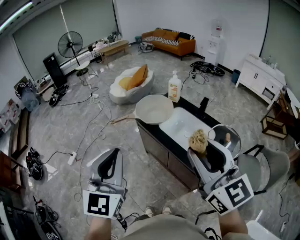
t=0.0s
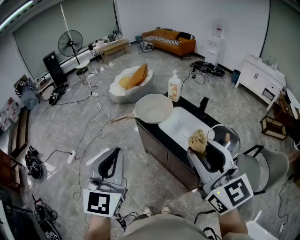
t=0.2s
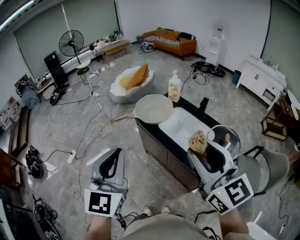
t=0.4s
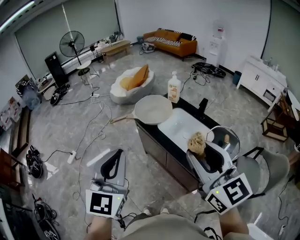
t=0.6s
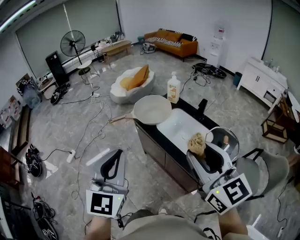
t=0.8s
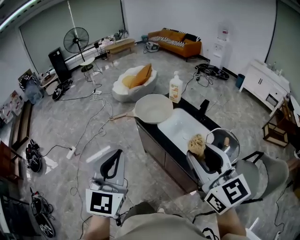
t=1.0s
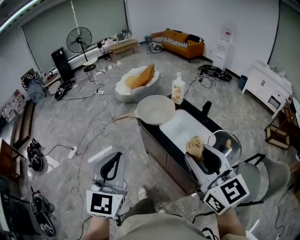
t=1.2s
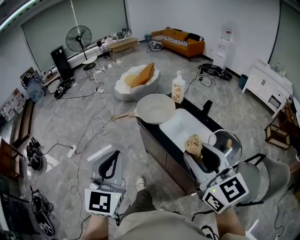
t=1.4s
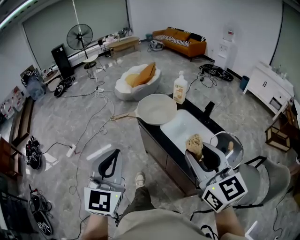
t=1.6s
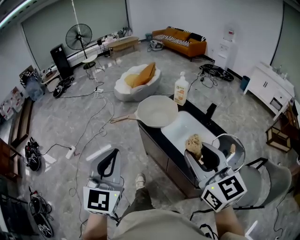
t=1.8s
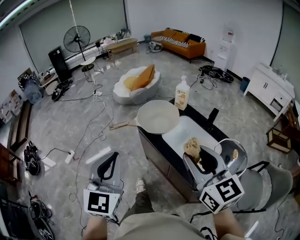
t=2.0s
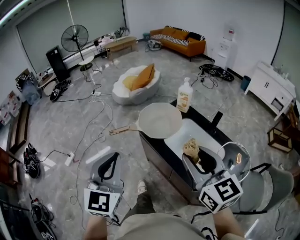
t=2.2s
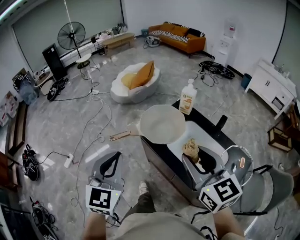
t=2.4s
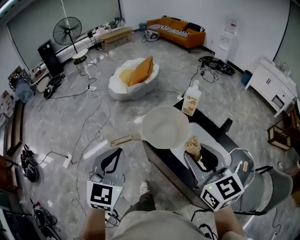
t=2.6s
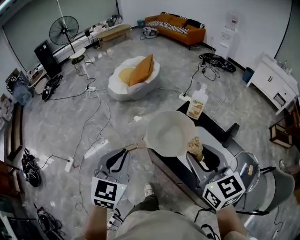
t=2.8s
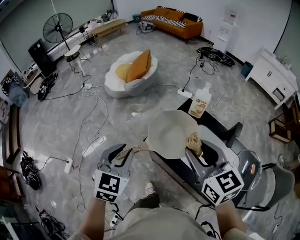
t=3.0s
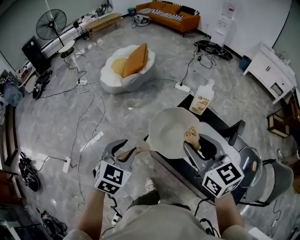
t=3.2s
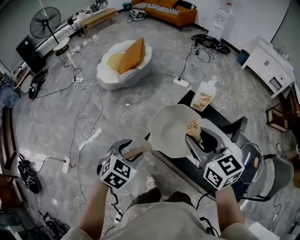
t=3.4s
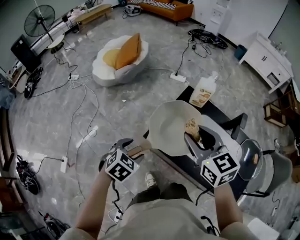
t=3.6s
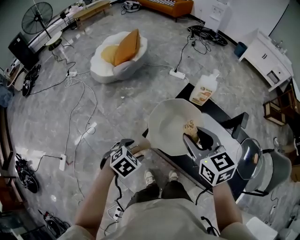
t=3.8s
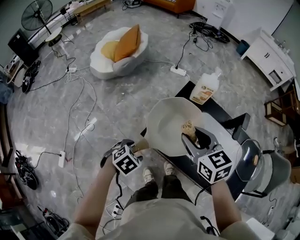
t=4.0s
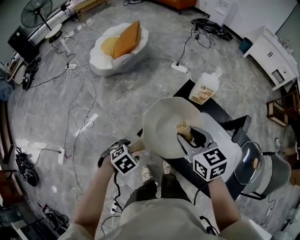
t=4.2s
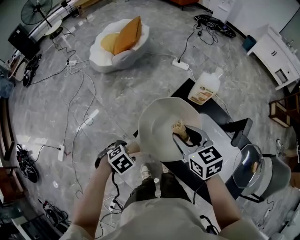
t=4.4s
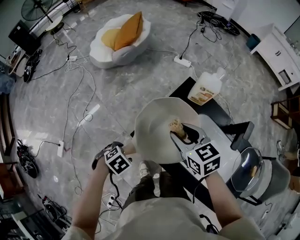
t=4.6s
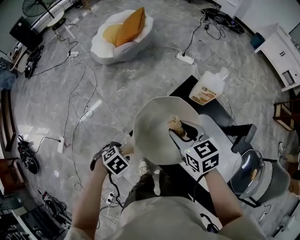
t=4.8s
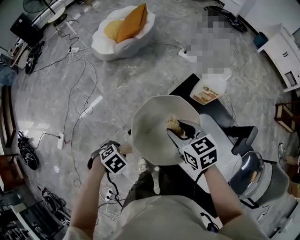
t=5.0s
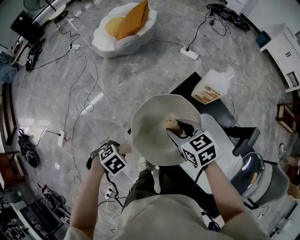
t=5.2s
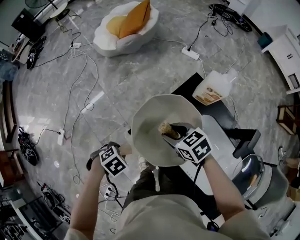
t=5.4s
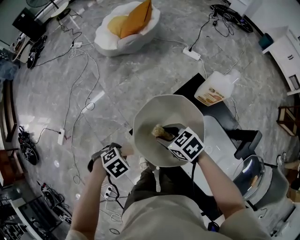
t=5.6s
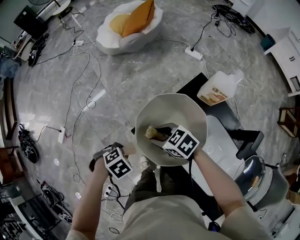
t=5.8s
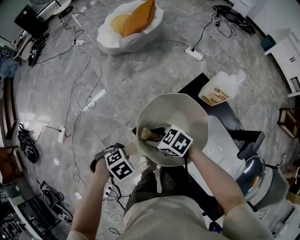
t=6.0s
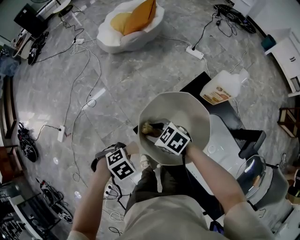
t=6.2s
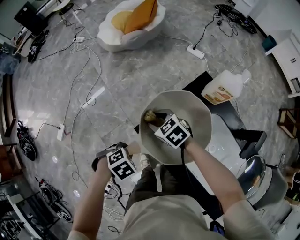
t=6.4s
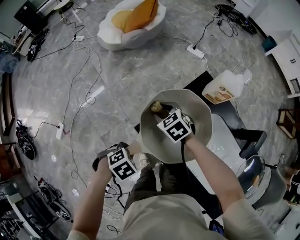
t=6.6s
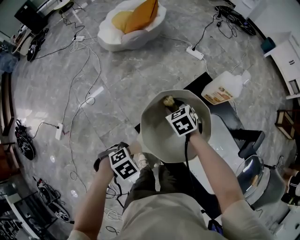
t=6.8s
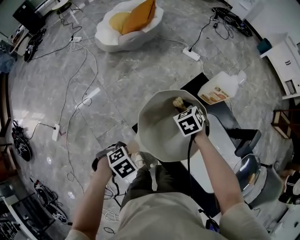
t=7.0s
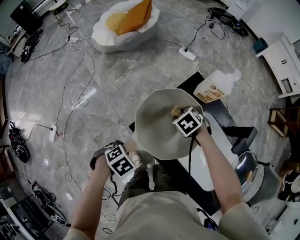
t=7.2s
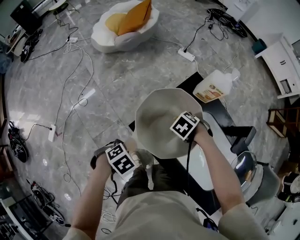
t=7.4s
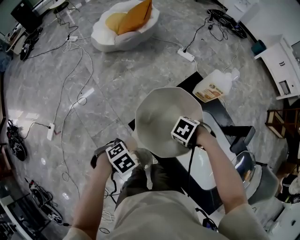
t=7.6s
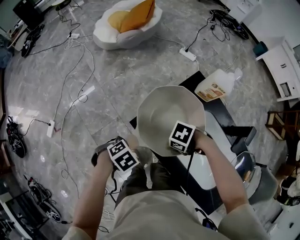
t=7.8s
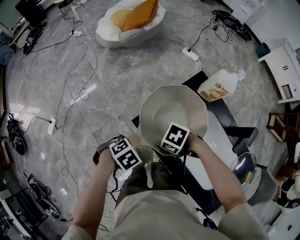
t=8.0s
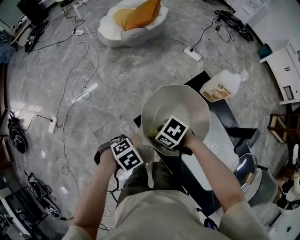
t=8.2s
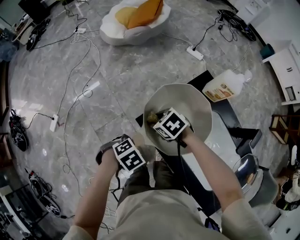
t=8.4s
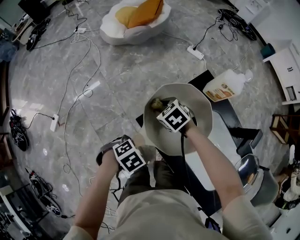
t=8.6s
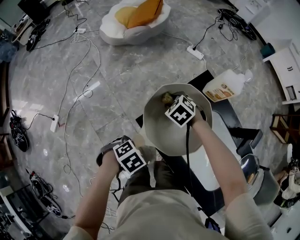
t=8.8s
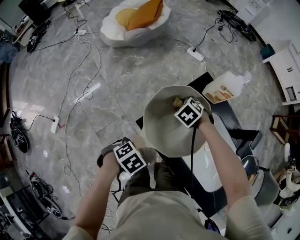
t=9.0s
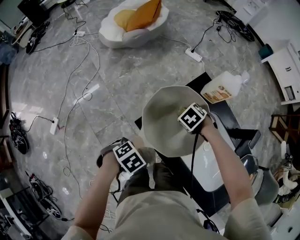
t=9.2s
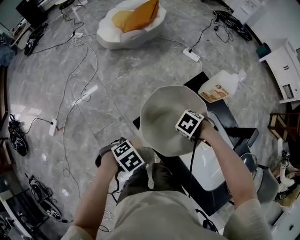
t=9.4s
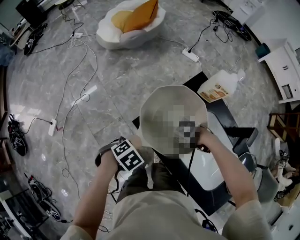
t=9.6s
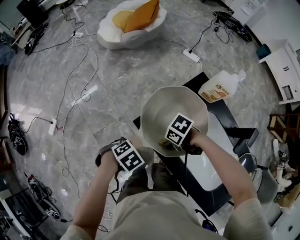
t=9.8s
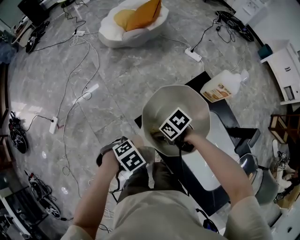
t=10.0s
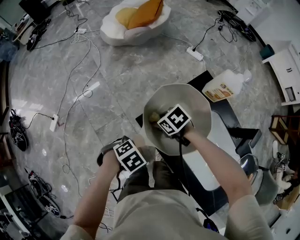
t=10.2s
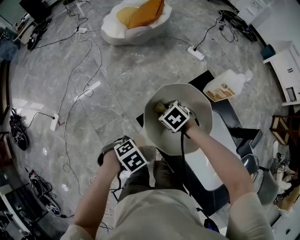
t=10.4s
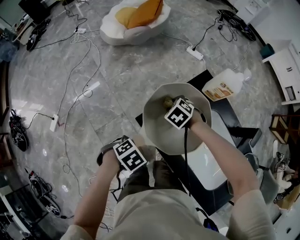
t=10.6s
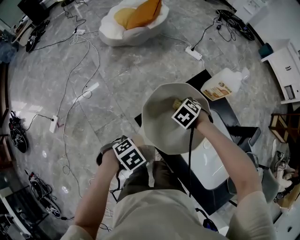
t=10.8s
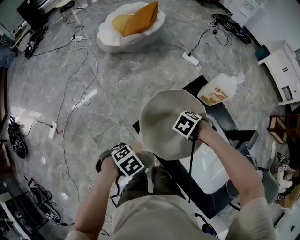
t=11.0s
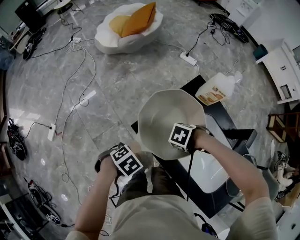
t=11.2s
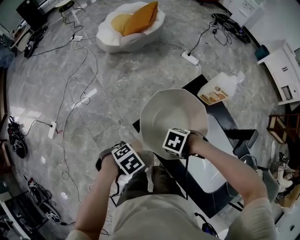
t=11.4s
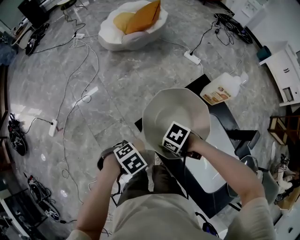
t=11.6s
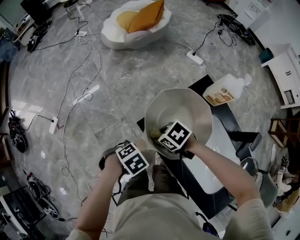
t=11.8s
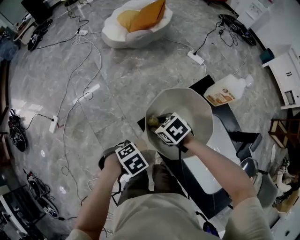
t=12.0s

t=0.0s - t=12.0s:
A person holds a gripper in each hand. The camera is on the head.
t=0.0s - t=1.6s: The right gripper goes approximately 5 cm downward. The left gripper changes place by approximately 5 cm.
t=1.6s - t=3.0s: Both grippers travel together forward, about 35 cm. The left gripper changes its angle by about 30 degrees.
t=3.0s - t=4.4s: The left gripper moves downward, roughly 30 cm, angles its fingers downward, by some 50 degrees, and opens. Meanwhile the right gripper heads downward, covering approximately 20 cm.
t=4.4s - t=6.0s: The right gripper travels downward by roughly 15 cm, and turns by roughly 50 degrees. Meanwhile the left gripper closes up.
t=6.0s - t=7.6s: The right gripper moves about 15 cm, and tilts its fingers approximately 30 degrees downward.
t=7.6s - t=9.0s: The right gripper moves approximately 15 cm, and rotates about 30 degrees.

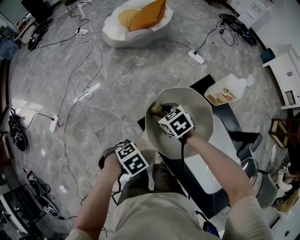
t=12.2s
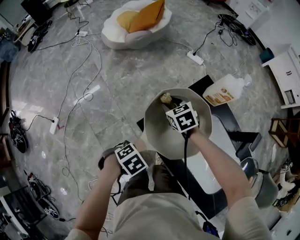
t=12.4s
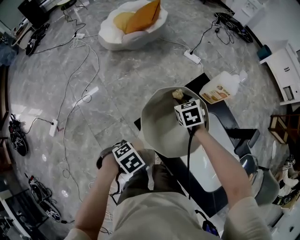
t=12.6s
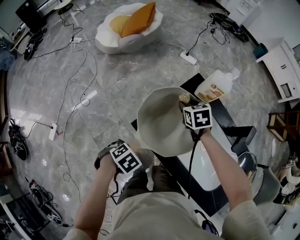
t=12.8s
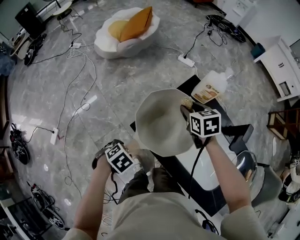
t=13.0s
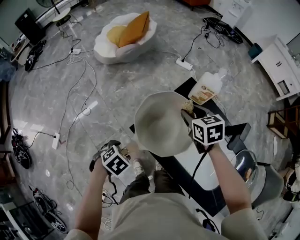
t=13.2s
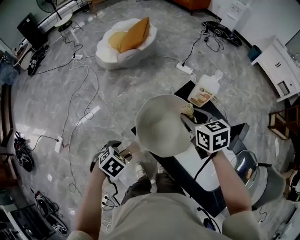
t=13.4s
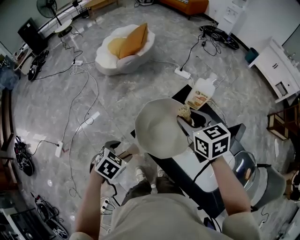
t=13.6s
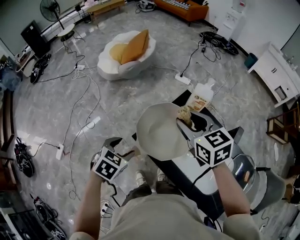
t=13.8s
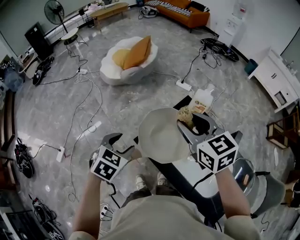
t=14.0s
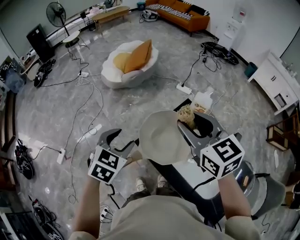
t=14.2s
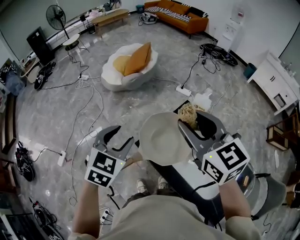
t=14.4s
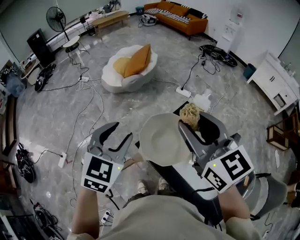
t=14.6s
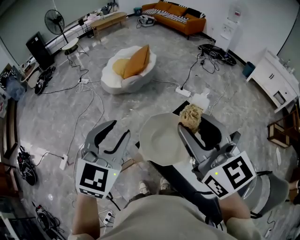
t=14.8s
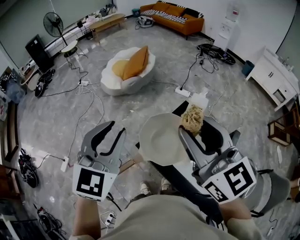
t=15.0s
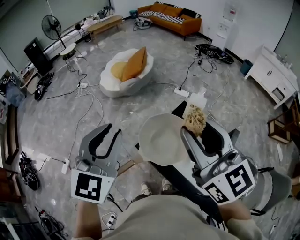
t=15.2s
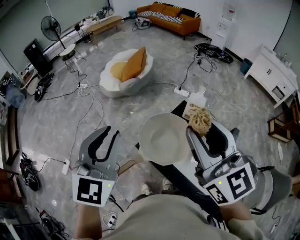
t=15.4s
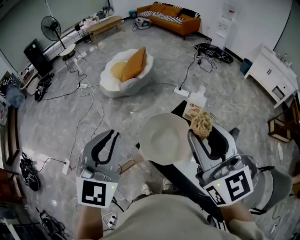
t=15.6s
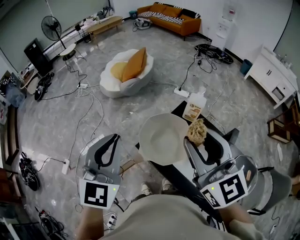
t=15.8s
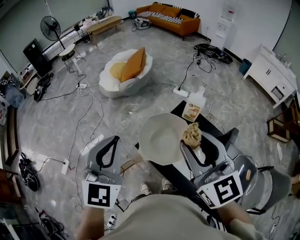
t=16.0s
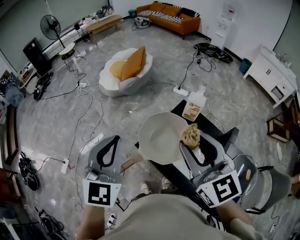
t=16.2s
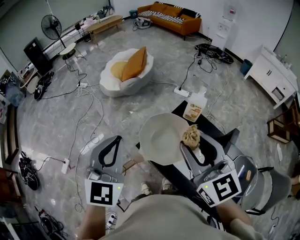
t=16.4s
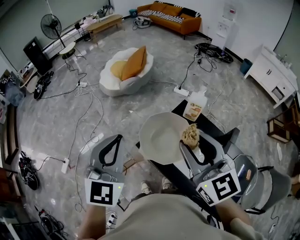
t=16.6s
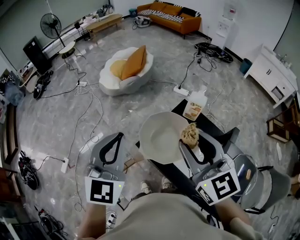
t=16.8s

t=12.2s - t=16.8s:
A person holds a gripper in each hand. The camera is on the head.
t=12.2s - t=13.8s: The left gripper heads upward, covering about 15 cm, swivels about 30 degrees, and opens up. The right gripper goes about 25 cm upward, and changes its angle by roughly 40 degrees.
t=13.8s - t=15.2s: The left gripper heads upward, covering approximately 30 cm, angles its fingers upward, by approximately 50 degrees, and closes up. The right gripper heads upward and backward, covering about 20 cm, and points its fingers roughly 30 degrees further upward.
t=15.2s - t=16.8s: The right gripper goes roughly 5 cm downward.

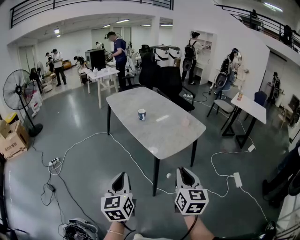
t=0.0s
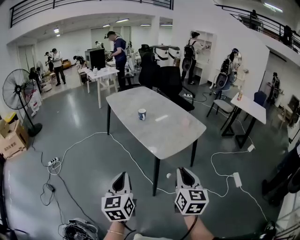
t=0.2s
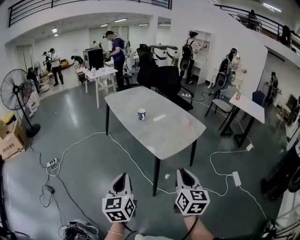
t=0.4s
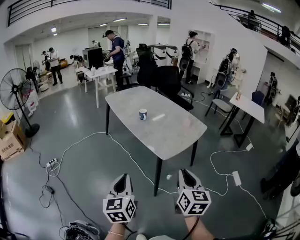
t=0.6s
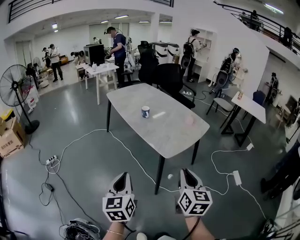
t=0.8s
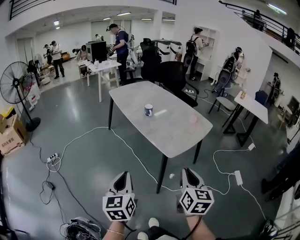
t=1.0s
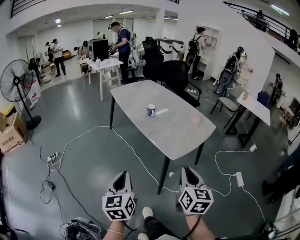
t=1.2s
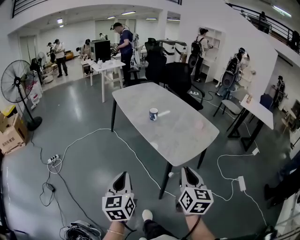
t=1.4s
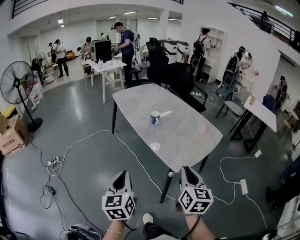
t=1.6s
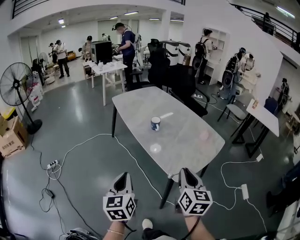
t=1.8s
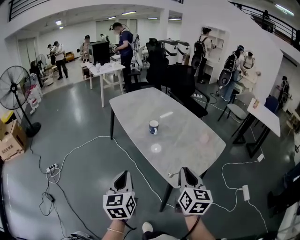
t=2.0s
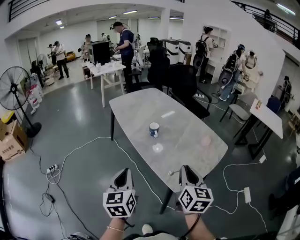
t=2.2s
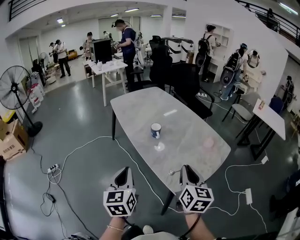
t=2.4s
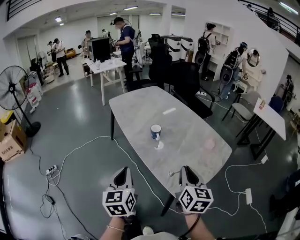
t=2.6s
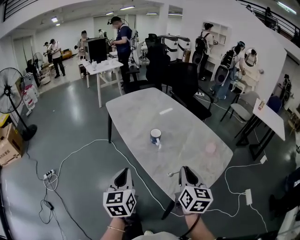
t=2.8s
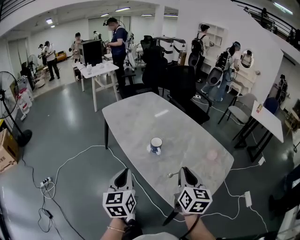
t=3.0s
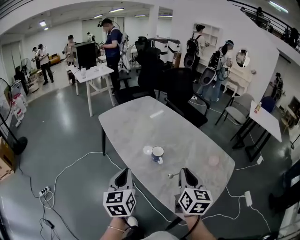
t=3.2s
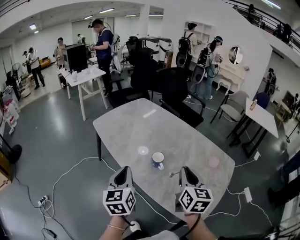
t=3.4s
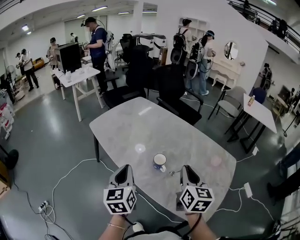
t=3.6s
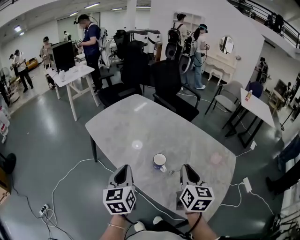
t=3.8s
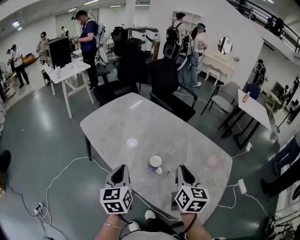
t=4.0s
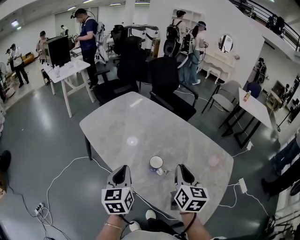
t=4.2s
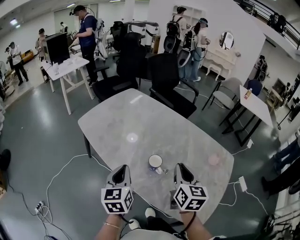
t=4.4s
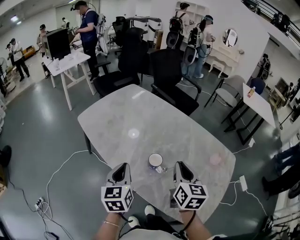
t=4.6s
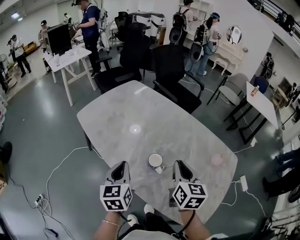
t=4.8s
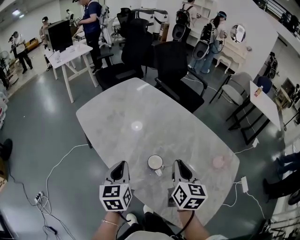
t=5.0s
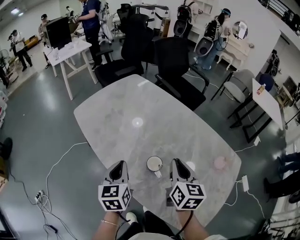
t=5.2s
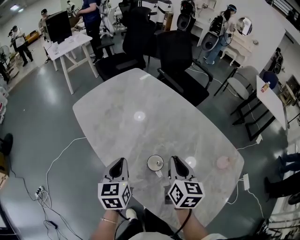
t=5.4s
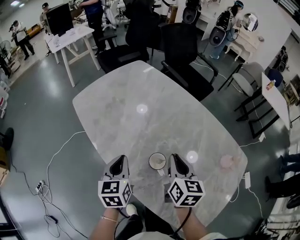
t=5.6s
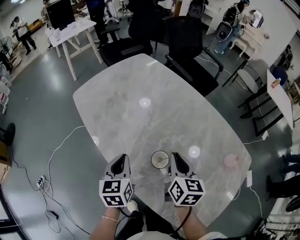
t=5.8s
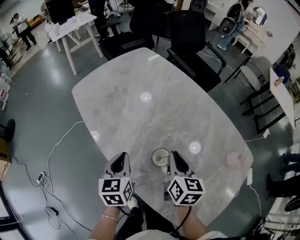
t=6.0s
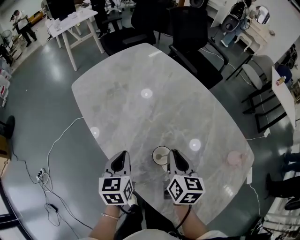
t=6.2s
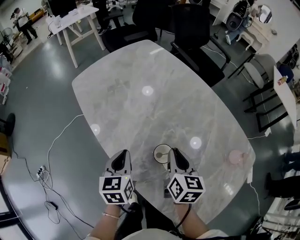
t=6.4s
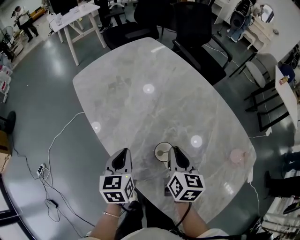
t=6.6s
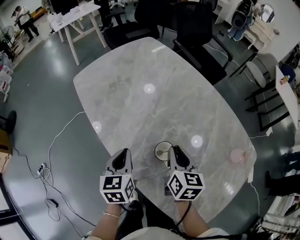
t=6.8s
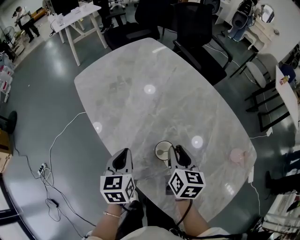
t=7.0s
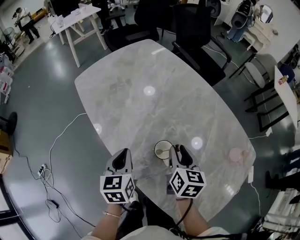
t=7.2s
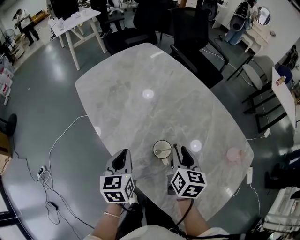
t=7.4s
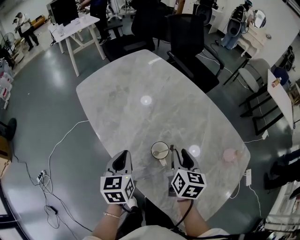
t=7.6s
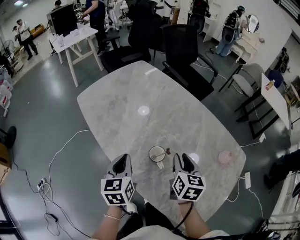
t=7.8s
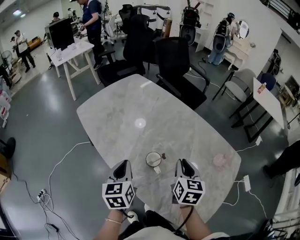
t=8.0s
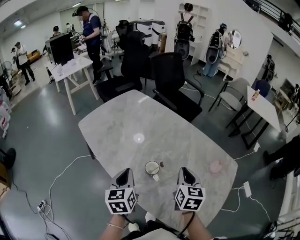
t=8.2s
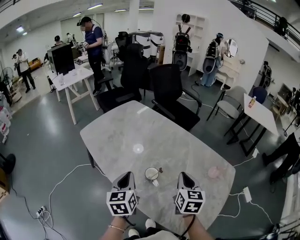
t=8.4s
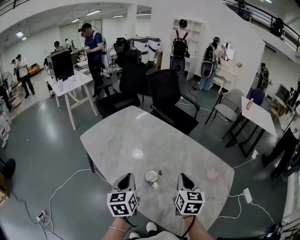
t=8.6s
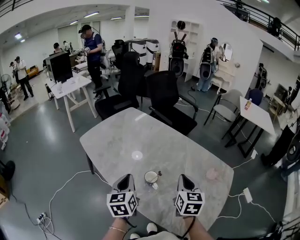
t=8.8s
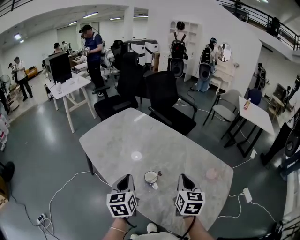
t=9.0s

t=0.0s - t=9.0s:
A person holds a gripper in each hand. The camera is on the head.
t=0.0s - t=1.6s: The two grippers go roughly 15 cm forward and to the left.
t=1.6s - t=3.0s: The two grippers go approximately 25 cm forward.
t=3.0s - t=4.4s: The two grippers go approximately 15 cm forward.
t=4.4s - t=6.0s: The right gripper travels downward and forward by approximately 15 cm, while the left gripper shifts about 10 cm downward.
t=6.0s - t=7.6s: The right gripper opens up.
t=7.6s - t=9.0s: The right gripper moves upward and to the right, roughly 10 cm, and closes, while the left gripper is displaced upward by approximately 10 cm.
